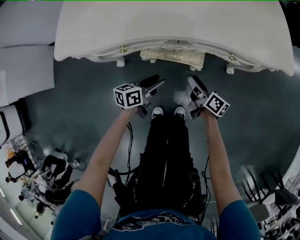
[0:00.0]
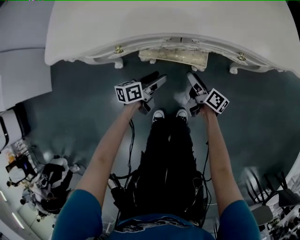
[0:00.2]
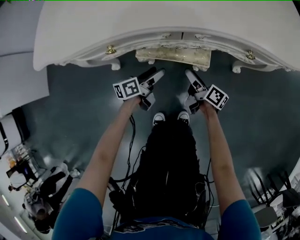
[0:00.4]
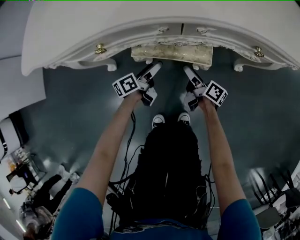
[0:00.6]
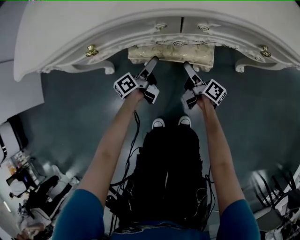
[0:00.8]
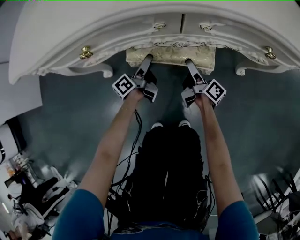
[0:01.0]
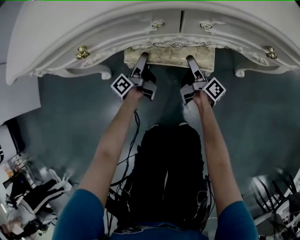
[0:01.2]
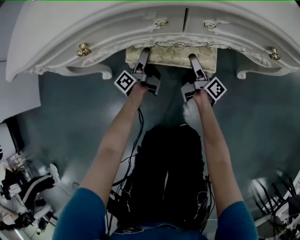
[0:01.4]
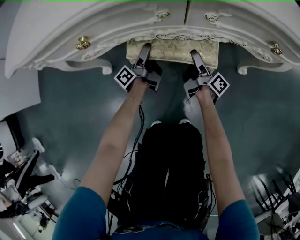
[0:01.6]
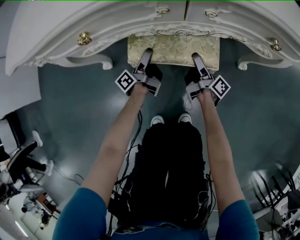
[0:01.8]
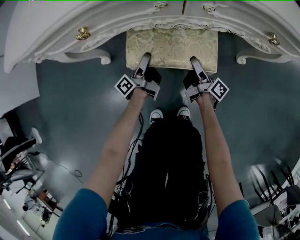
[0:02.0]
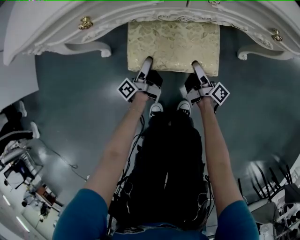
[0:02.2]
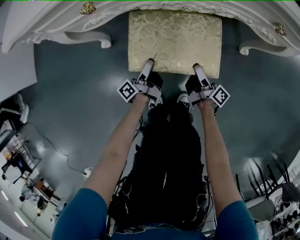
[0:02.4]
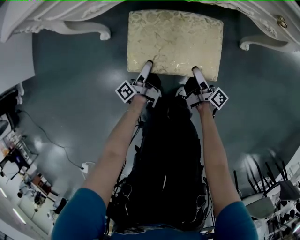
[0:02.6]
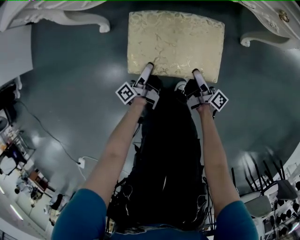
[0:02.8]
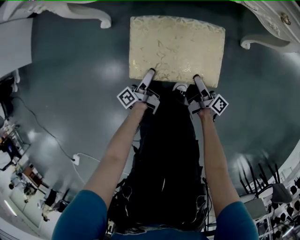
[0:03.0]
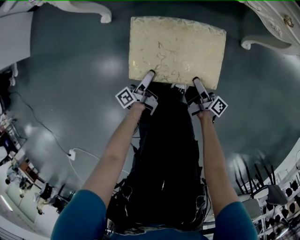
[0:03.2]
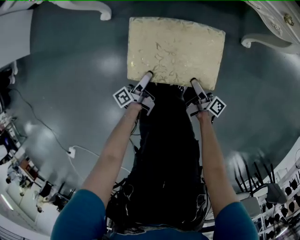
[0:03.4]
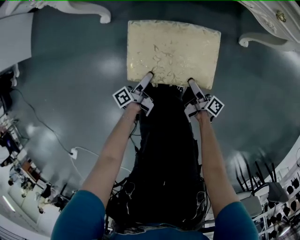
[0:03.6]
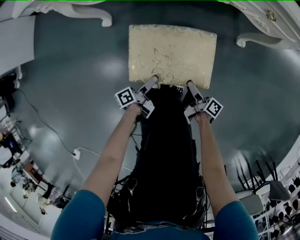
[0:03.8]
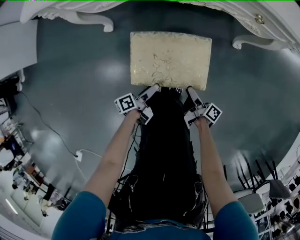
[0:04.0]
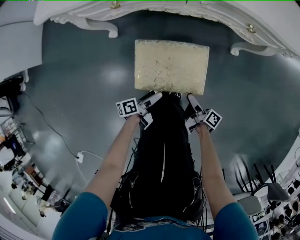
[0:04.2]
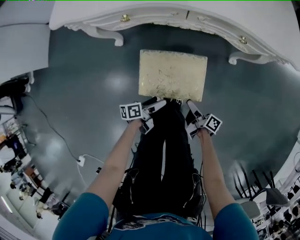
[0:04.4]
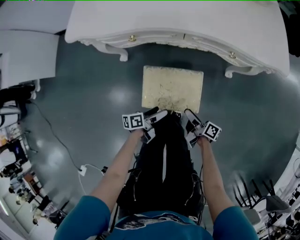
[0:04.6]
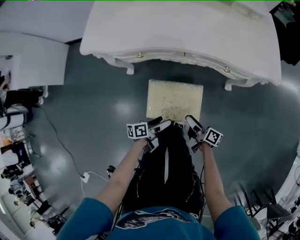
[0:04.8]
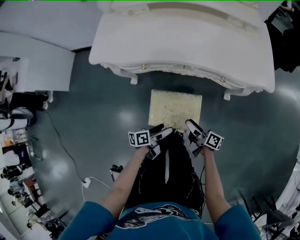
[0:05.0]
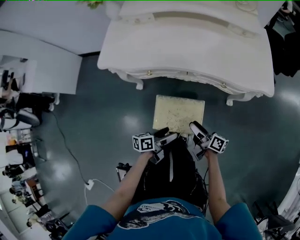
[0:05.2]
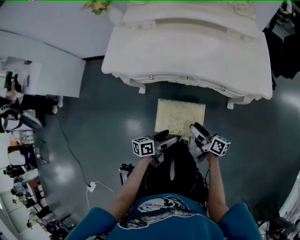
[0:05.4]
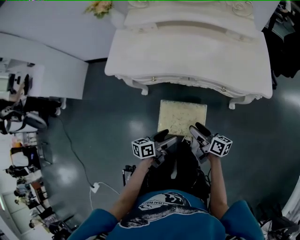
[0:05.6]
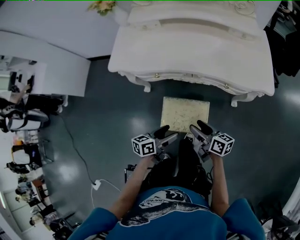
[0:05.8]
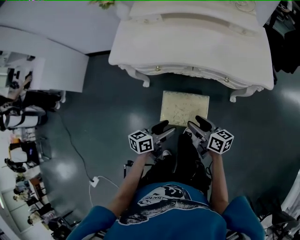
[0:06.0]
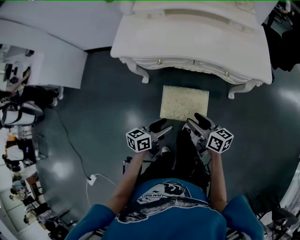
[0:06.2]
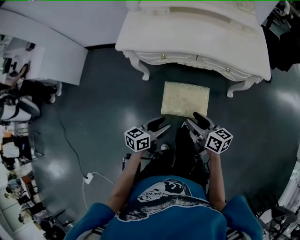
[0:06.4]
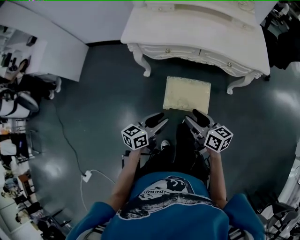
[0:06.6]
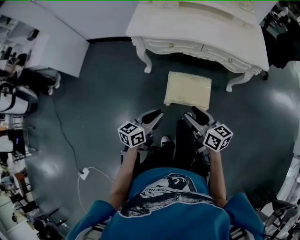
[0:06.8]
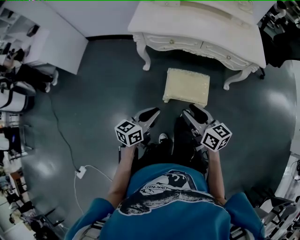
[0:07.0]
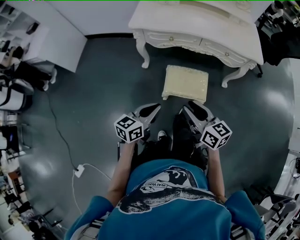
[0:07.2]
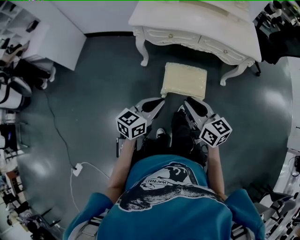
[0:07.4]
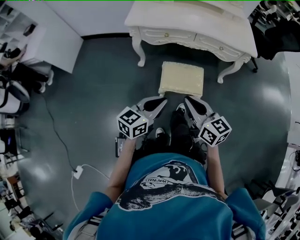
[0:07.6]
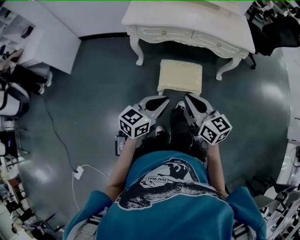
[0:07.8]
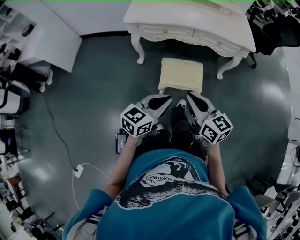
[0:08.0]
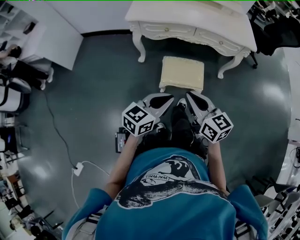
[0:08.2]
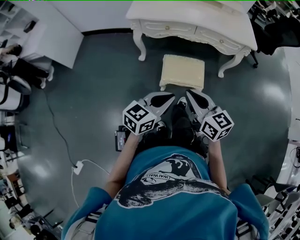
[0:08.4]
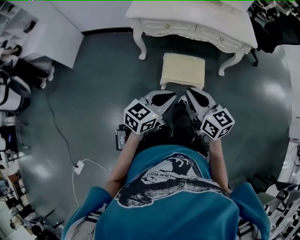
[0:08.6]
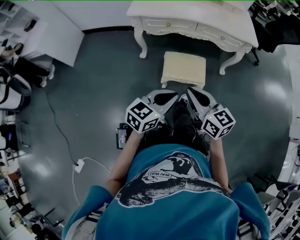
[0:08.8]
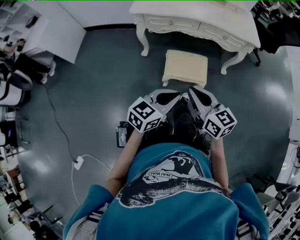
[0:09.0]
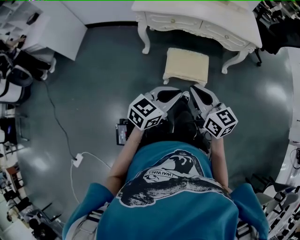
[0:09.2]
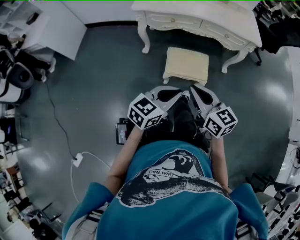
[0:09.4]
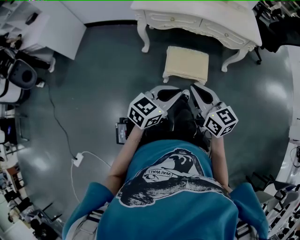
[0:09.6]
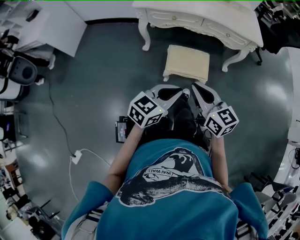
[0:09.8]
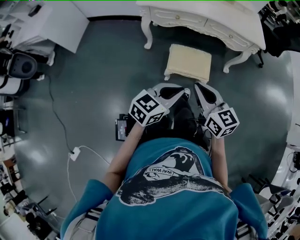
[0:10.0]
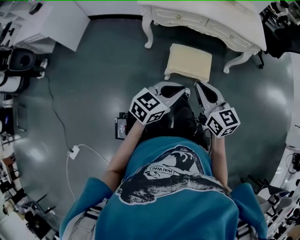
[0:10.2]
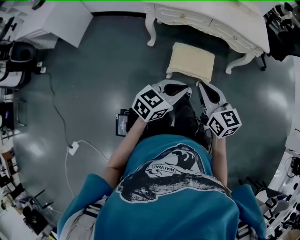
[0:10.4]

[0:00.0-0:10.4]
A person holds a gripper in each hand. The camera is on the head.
0:00.0 to 0:01.4: Both grippers travel together downward and forward, some 25 cm. The right gripper changes its angle by some 30 degrees, and opens. Meanwhile the left gripper turns by roughly 60 degrees, and opens up.
0:01.4 to 0:03.0: The two grippers go about 30 cm backward.
0:03.0 to 0:04.4: The left gripper is displaced upward and backward by approximately 10 cm, and swivels some 40 degrees; the right gripper heads upward, covering approximately 10 cm.
0:04.4 to 0:06.0: The two grippers go about 30 cm upward. The left gripper changes its angle by about 30 degrees; the right gripper rotates around the line of its fingers by roughly 40 degrees, counterclockwise from behind.
0:06.0 to 0:07.4: Both grippers travel together backward, upward and to the left, about 25 cm. The left gripper swivels about 30 degrees, and closes. Meanwhile the right gripper changes its angle by about 30 degrees, and closes.
0:07.4 to 0:09.0: The left gripper travels backward and to the right by roughly 10 cm, while the right gripper goes approximately 5 cm backward.
0:09.0 to 0:10.4: There are only small adjustments of the grippers.

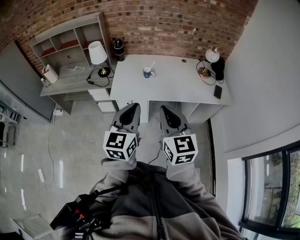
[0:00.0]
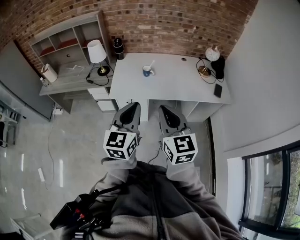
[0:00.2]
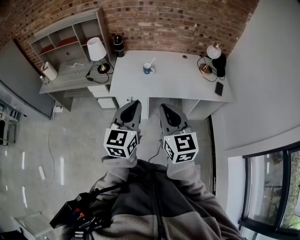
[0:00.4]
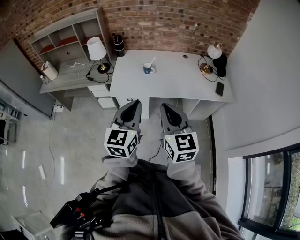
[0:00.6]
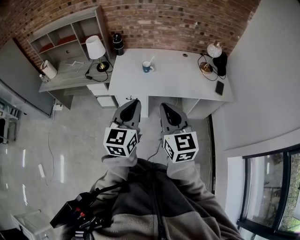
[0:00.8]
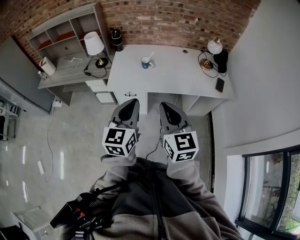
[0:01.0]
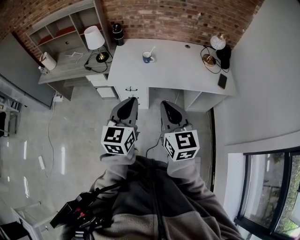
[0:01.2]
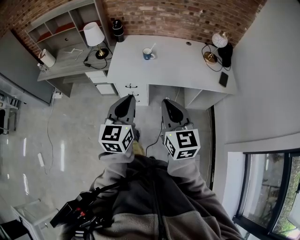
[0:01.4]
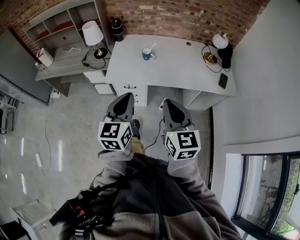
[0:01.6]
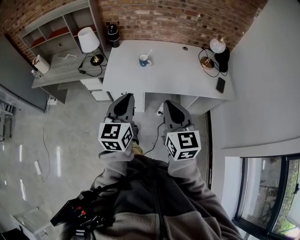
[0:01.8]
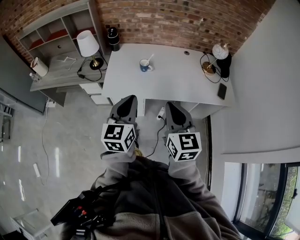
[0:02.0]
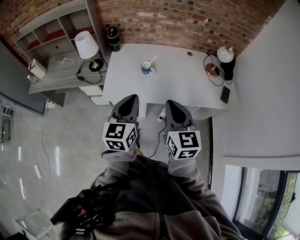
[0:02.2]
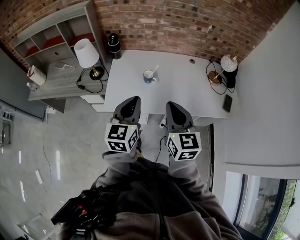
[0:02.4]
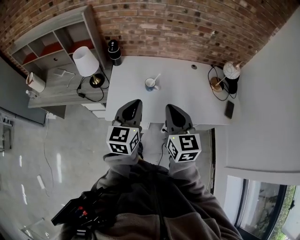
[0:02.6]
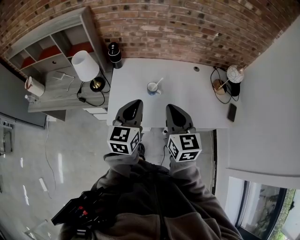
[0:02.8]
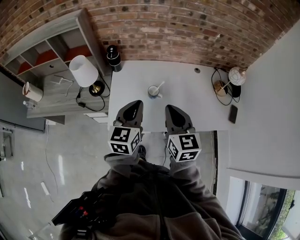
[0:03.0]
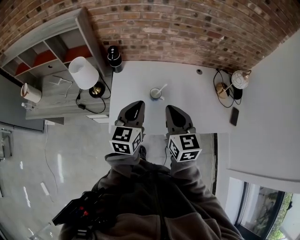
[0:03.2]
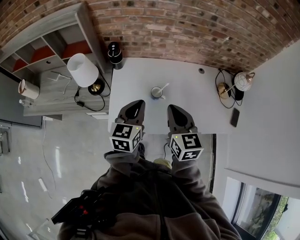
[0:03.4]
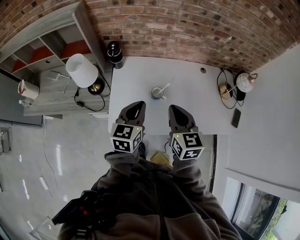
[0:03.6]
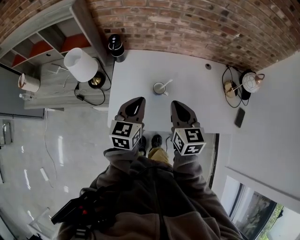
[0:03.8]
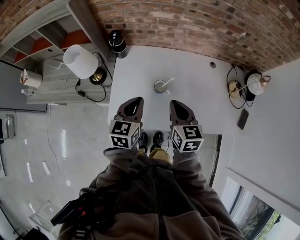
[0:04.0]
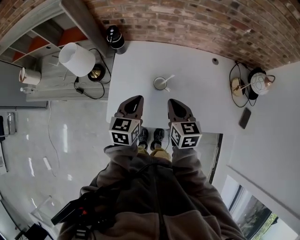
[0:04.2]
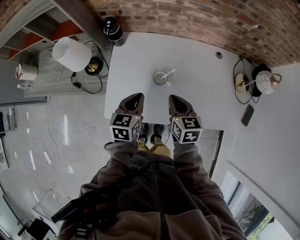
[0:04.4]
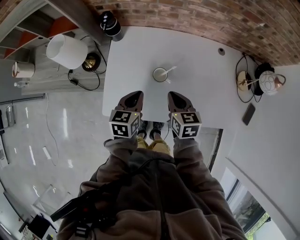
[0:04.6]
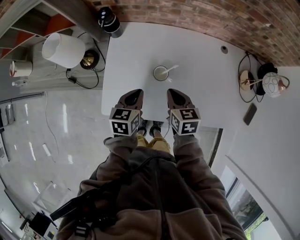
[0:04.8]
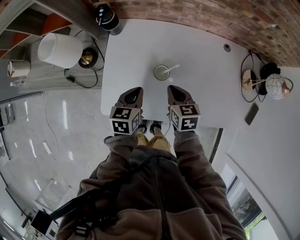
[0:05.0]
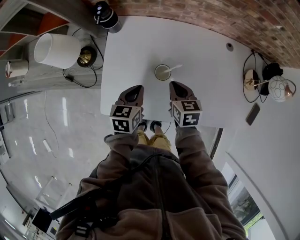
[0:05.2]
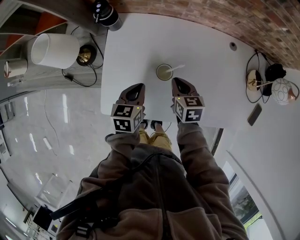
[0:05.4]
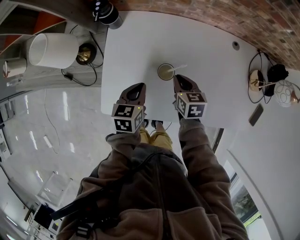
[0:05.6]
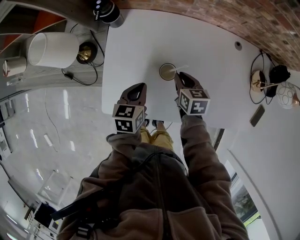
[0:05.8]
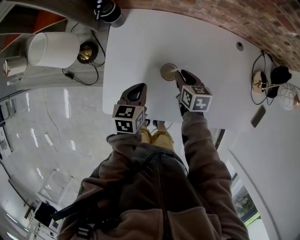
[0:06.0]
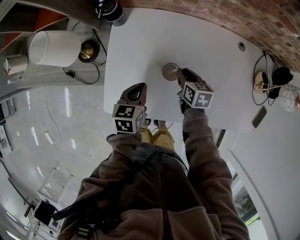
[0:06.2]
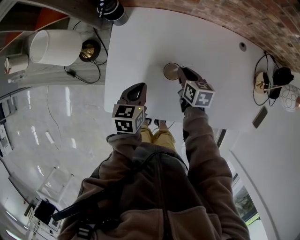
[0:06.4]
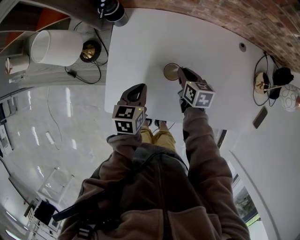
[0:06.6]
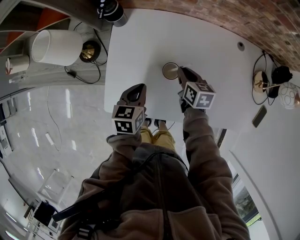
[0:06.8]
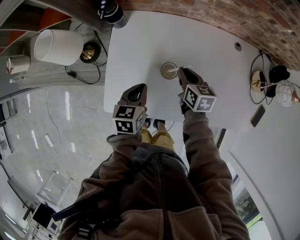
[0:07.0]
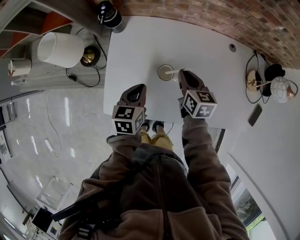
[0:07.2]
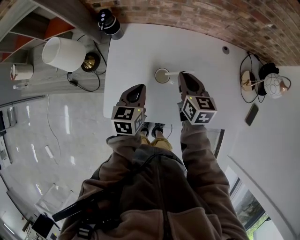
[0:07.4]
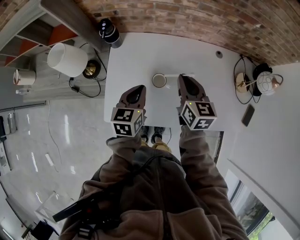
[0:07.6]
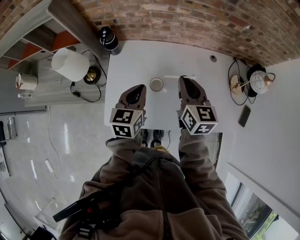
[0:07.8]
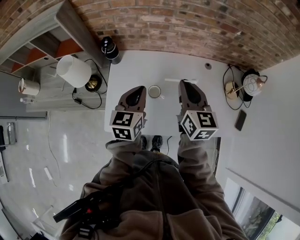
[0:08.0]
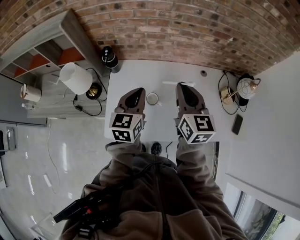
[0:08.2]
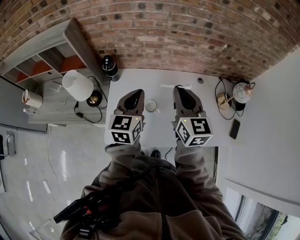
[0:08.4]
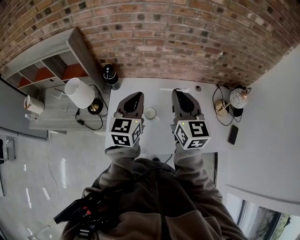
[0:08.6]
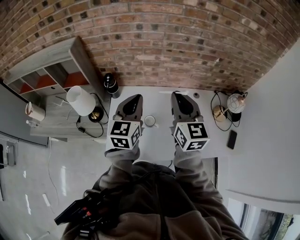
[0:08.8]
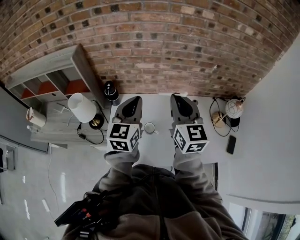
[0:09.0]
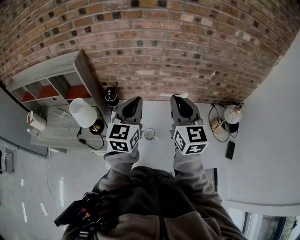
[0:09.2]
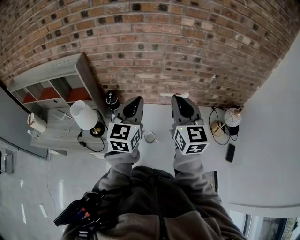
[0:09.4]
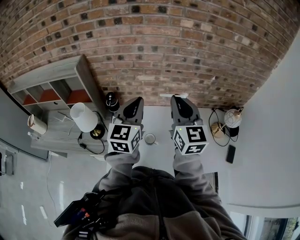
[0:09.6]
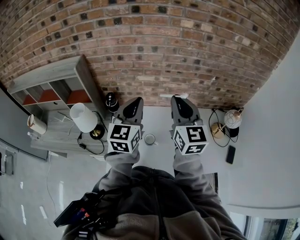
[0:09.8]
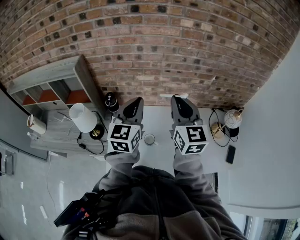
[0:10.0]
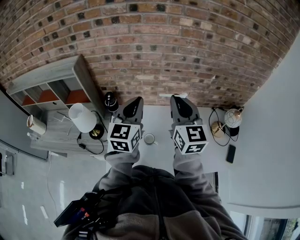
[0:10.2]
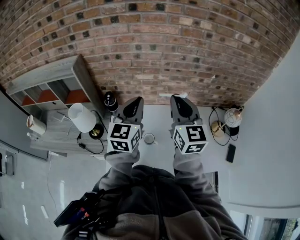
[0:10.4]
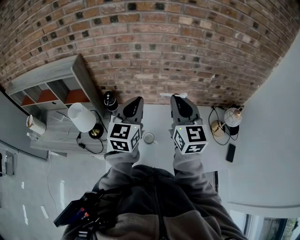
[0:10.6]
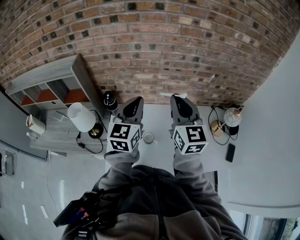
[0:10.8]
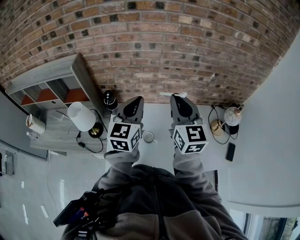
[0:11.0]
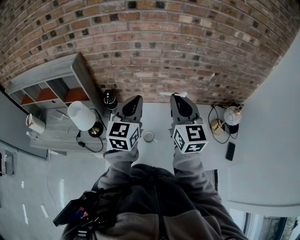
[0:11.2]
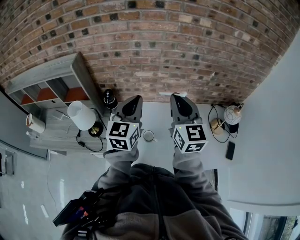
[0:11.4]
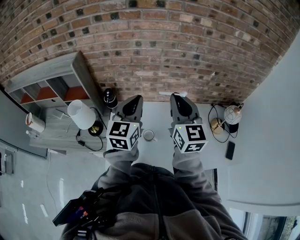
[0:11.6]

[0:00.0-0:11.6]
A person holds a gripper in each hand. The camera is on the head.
0:00.0 to 0:01.4: The grippers both shift downward by about 5 cm.
0:01.4 to 0:02.8: The grippers both shift forward by approximately 35 cm.
0:02.8 to 0:04.4: Both grippers move downward and forward, roughly 25 cm. The right gripper changes its angle by approximately 30 degrees. The left gripper turns by some 20 degrees.
0:04.4 to 0:05.8: The left gripper shifts about 10 cm downward, while the right gripper travels downward and forward by approximately 15 cm.
0:05.8 to 0:07.2: The right gripper goes about 5 cm upward.
0:07.2 to 0:08.8: The grippers both shift upward by roughly 30 cm. The left gripper angles its fingers upward, by some 30 degrees. Meanwhile the right gripper points its fingers approximately 30 degrees further upward.
0:08.8 to 0:10.2: Both grippers travel together upward, about 5 cm.
0:10.2 to 0:11.6: The two grippers keep their place.

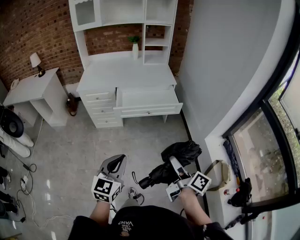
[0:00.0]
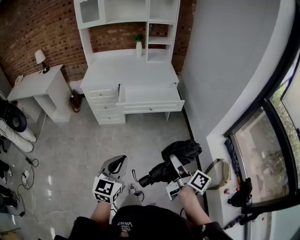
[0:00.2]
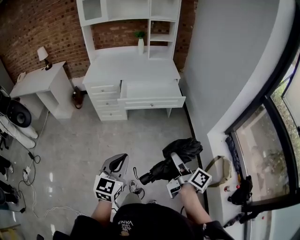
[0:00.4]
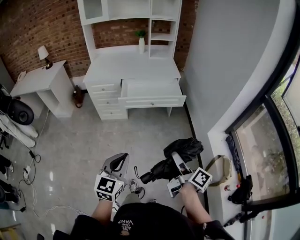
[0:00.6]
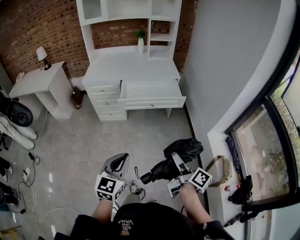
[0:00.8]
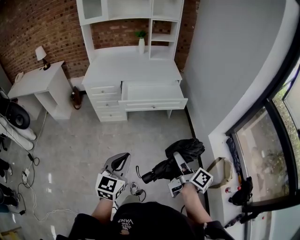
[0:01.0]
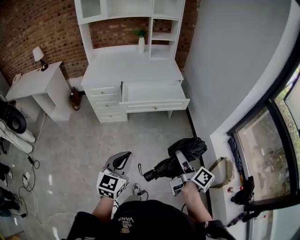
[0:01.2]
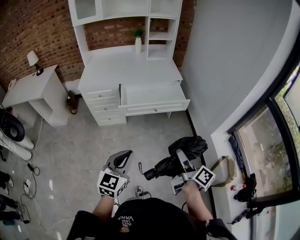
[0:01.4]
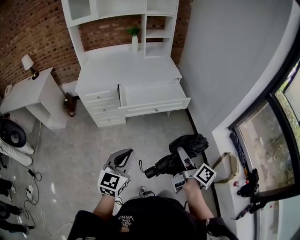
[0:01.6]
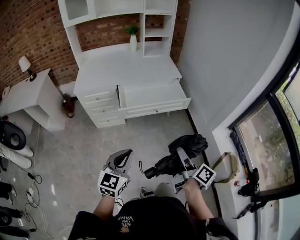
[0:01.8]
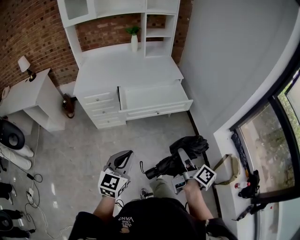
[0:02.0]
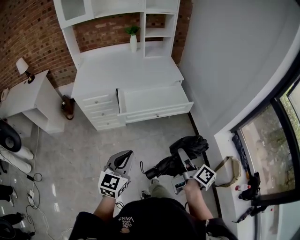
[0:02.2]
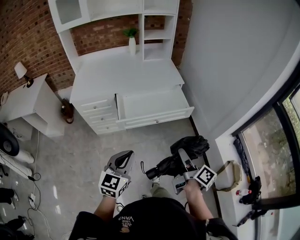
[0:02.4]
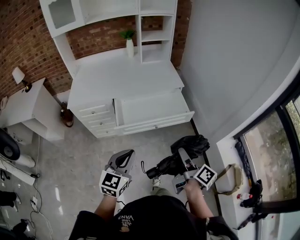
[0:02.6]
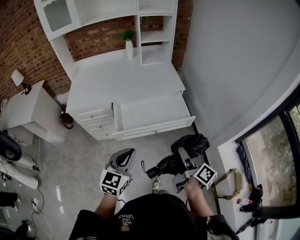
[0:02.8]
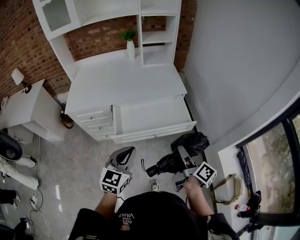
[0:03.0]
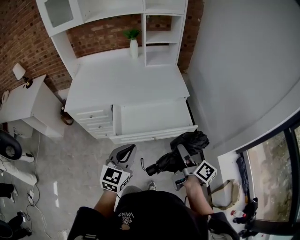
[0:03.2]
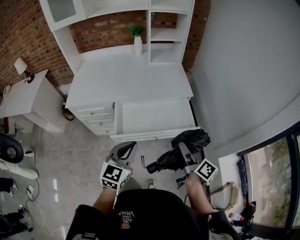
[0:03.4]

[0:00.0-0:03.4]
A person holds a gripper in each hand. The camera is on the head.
0:00.0 to 0:01.6: Both grippers travel together forward and to the left, about 10 cm.
0:01.6 to 0:03.4: The two grippers go about 35 cm forward.
